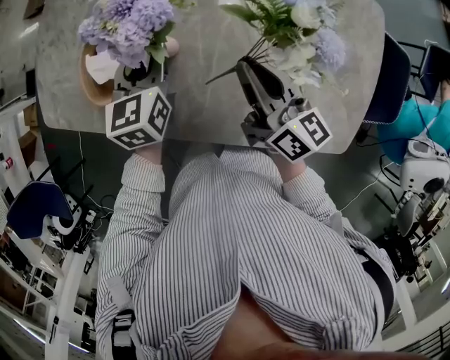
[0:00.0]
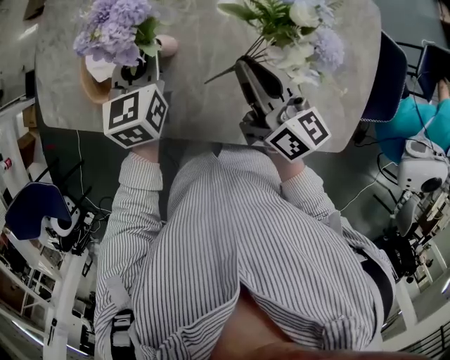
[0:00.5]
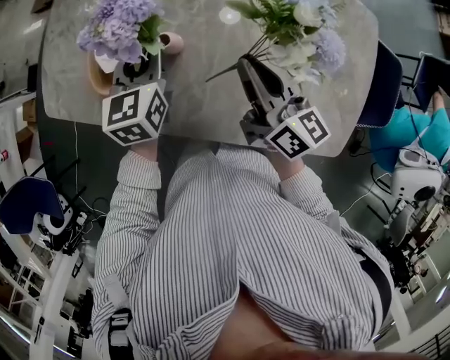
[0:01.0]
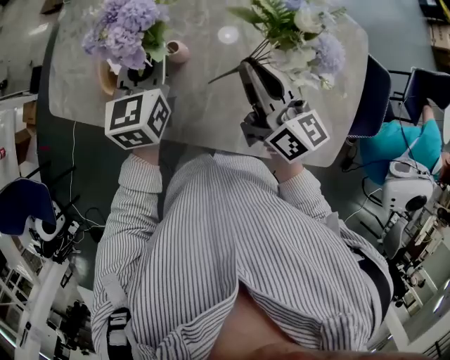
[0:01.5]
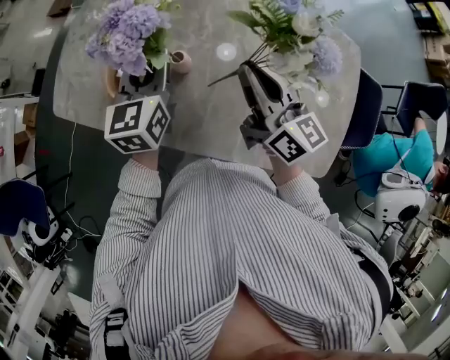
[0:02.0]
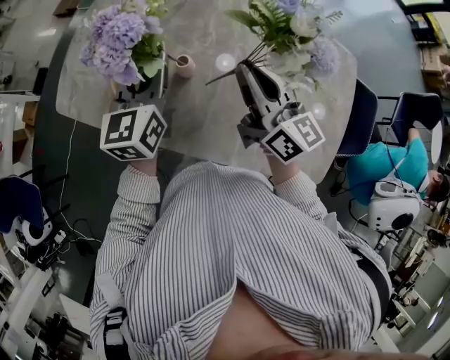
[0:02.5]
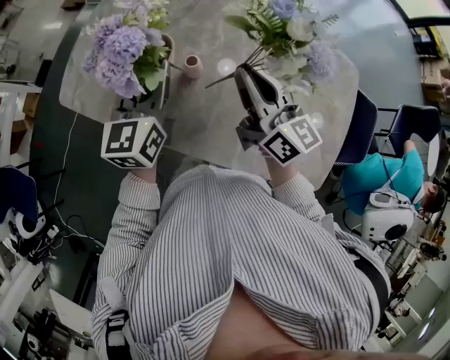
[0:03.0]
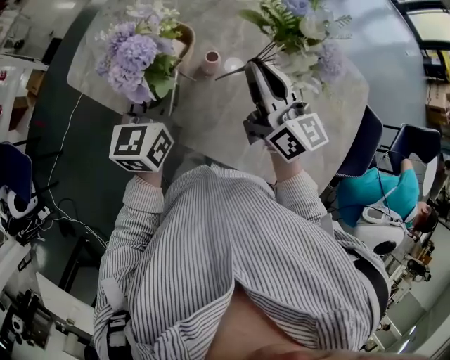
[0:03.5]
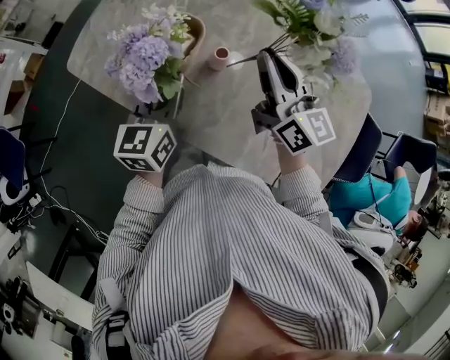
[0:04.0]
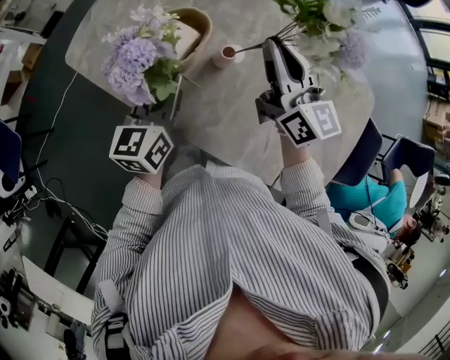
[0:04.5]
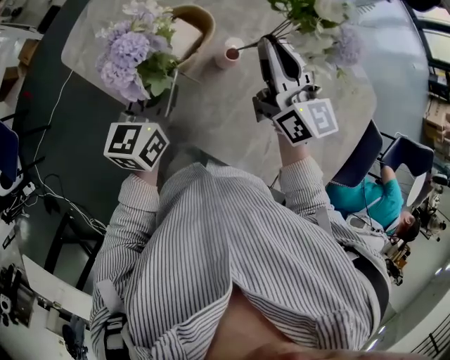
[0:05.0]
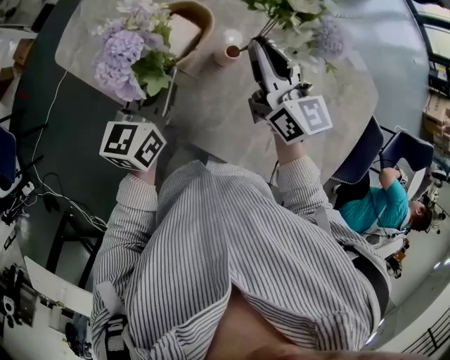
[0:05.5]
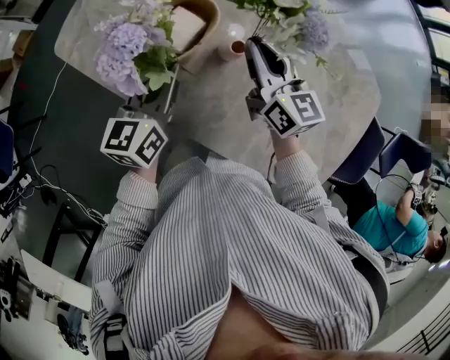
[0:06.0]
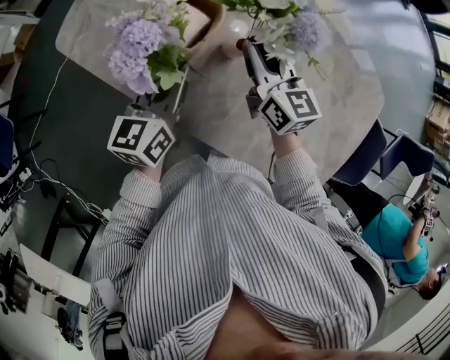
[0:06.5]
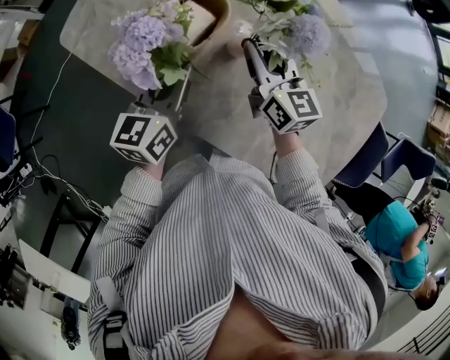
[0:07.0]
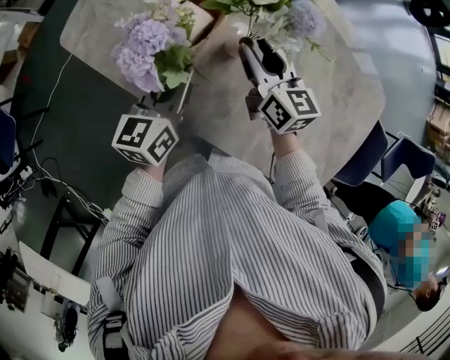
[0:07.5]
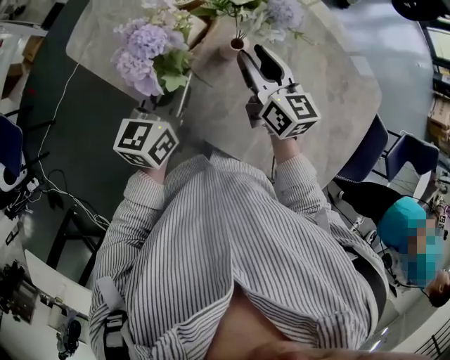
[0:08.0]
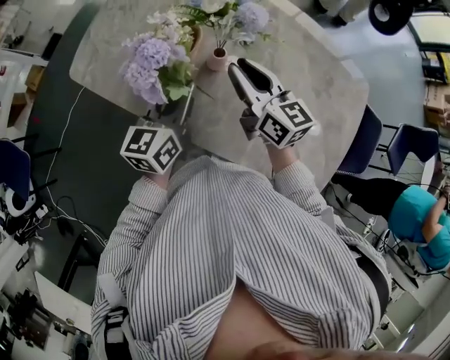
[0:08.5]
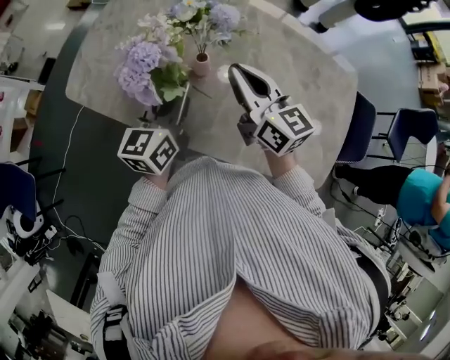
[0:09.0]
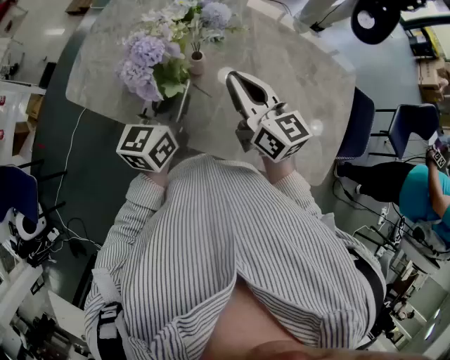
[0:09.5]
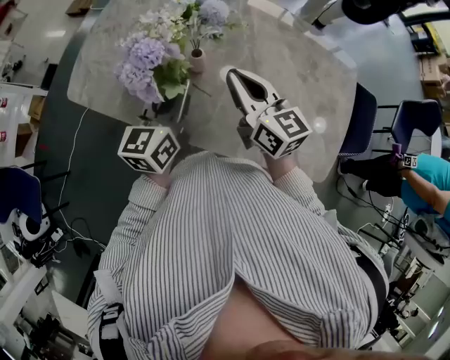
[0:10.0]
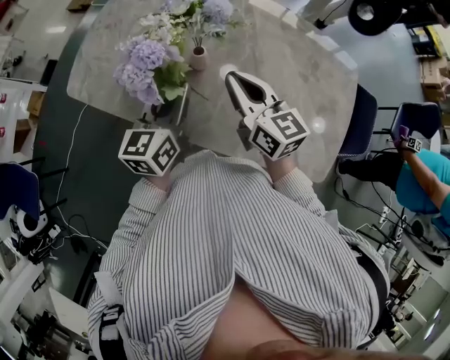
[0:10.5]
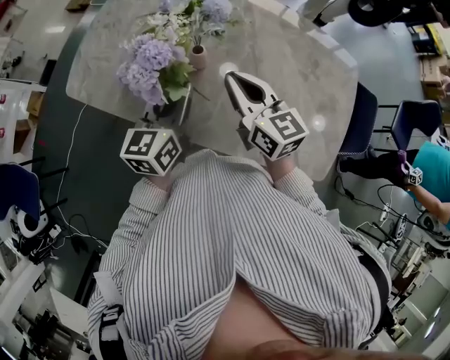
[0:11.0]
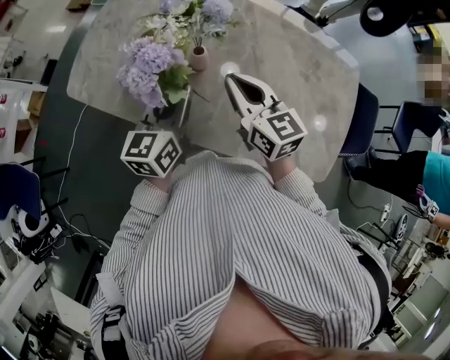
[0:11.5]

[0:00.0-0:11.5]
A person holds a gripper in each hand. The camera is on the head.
0:00.0 to 0:02.0: The grippers both shift upward by about 10 cm.
0:02.0 to 0:04.0: The right gripper goes approximately 5 cm forward. The left gripper moves to the left and backward, roughly 10 cm.
0:04.0 to 0:06.0: The left gripper goes some 5 cm downward. The right gripper heads downward, covering about 10 cm.
0:06.0 to 0:07.5: The right gripper opens.
0:07.5 to 0:09.5: The right gripper heads upward and backward, covering about 20 cm, and closes. The left gripper travels upward and to the right by roughly 15 cm.
0:09.5 to 0:11.5: The grippers move only a little.

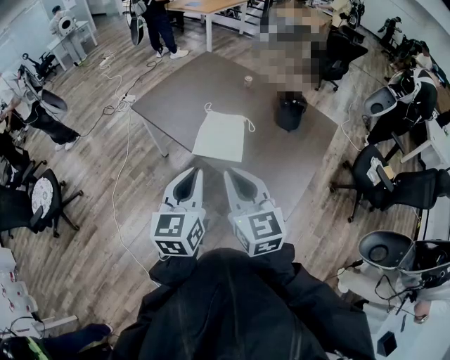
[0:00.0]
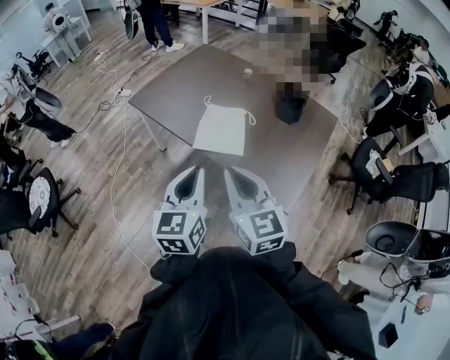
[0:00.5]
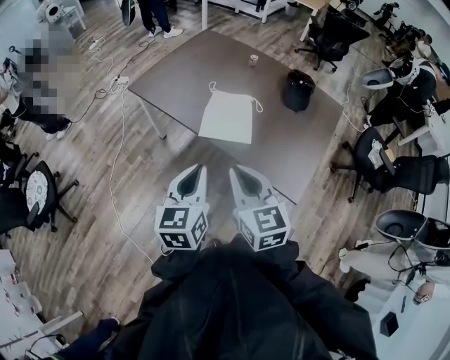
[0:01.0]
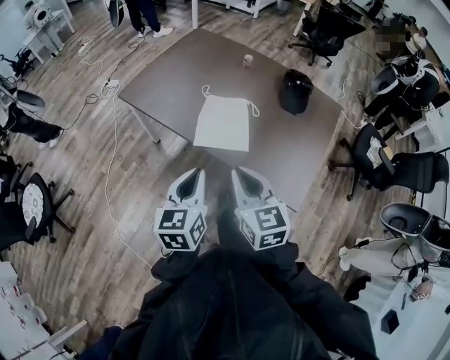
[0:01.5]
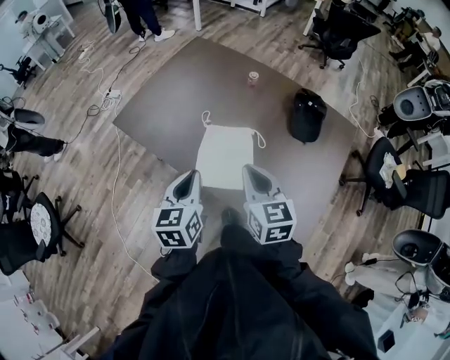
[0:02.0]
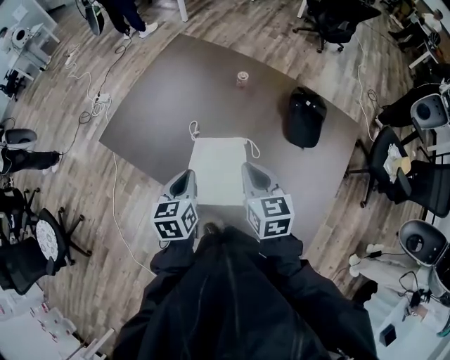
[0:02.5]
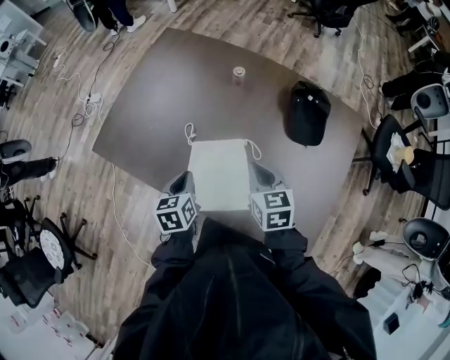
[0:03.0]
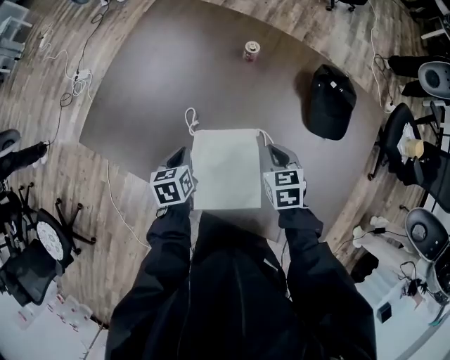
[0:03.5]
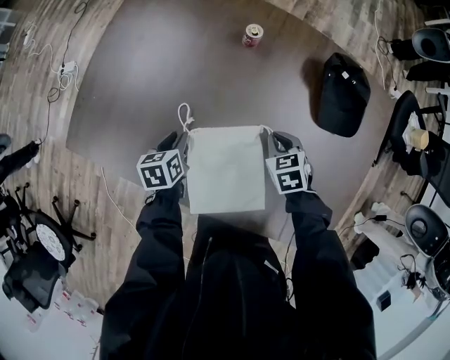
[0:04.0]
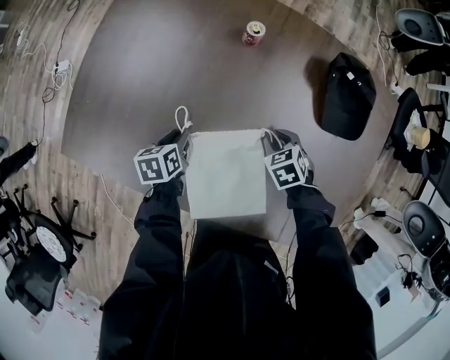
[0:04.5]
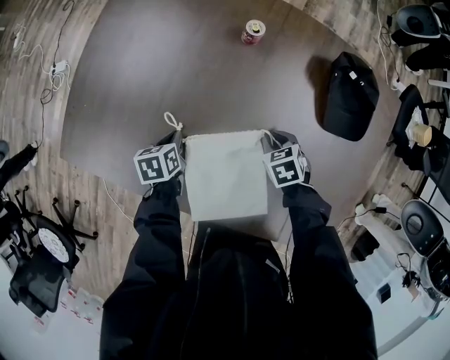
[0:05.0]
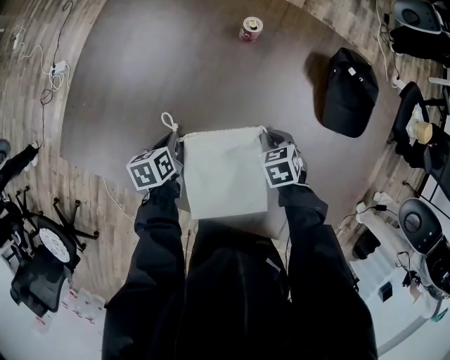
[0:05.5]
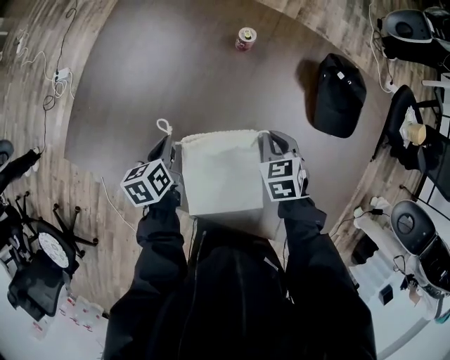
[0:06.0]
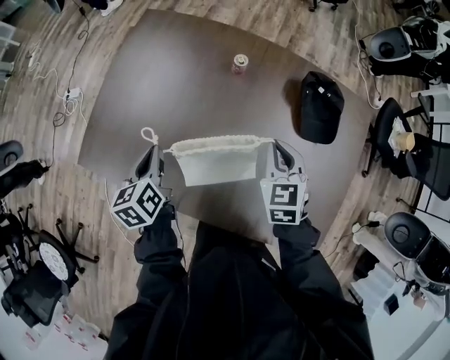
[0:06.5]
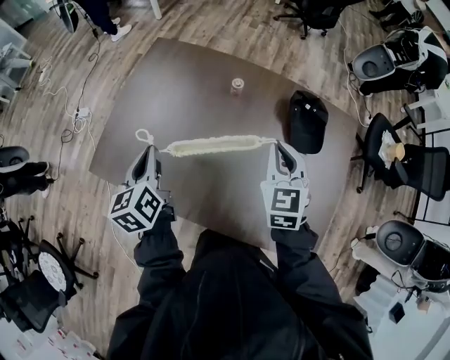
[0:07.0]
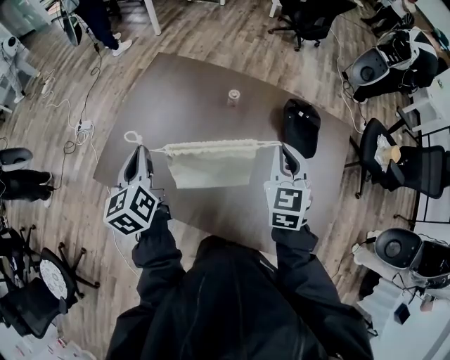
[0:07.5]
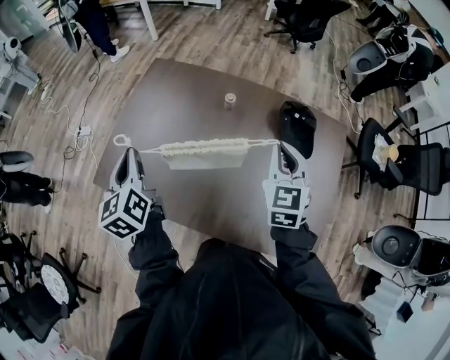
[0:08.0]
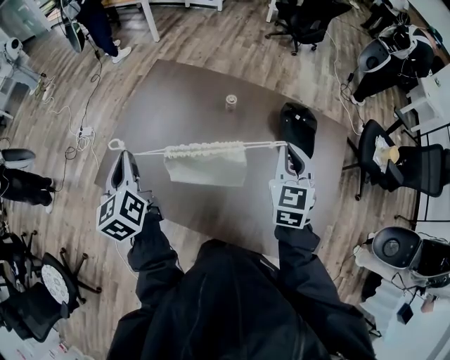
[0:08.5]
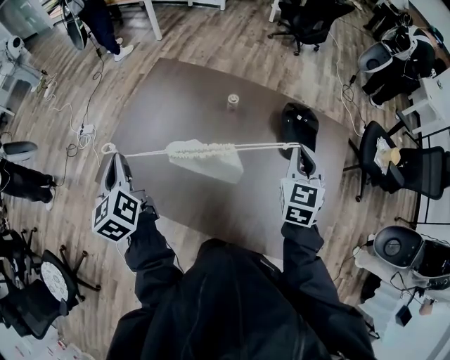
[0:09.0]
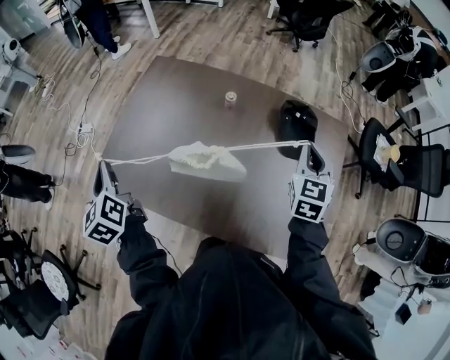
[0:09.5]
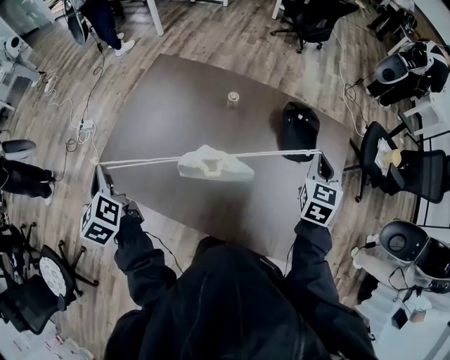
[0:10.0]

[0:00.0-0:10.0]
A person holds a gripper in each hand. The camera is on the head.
0:00.0 to 0:02.0: Both grippers move forward and downward, some 30 cm.
0:02.0 to 0:04.0: The grippers both shift downward and forward by roughly 40 cm. The right gripper tilts its fingers some 40 degrees downward. The left gripper changes its angle by about 30 degrees, and opens up.
0:04.0 to 0:06.0: The left gripper shifts by about 5 cm, and closes up; the right gripper opens, then closes once more.
0:06.0 to 0:08.0: Both grippers travel together upward, about 35 cm. The left gripper angles its fingers upward, by about 30 degrees. Meanwhile the right gripper points its fingers about 40 degrees further upward.
0:08.0 to 0:10.0: The left gripper is displaced to the left by about 10 cm. The right gripper moves to the right, some 15 cm.

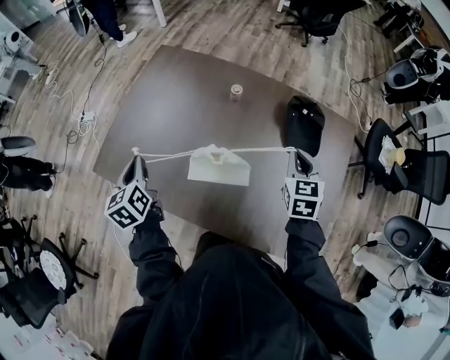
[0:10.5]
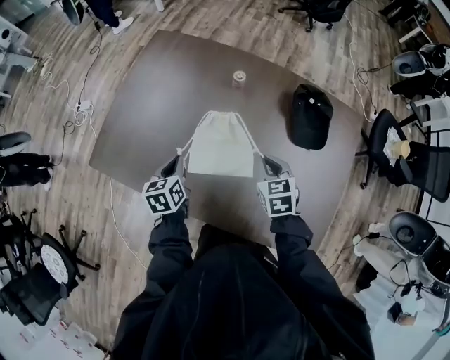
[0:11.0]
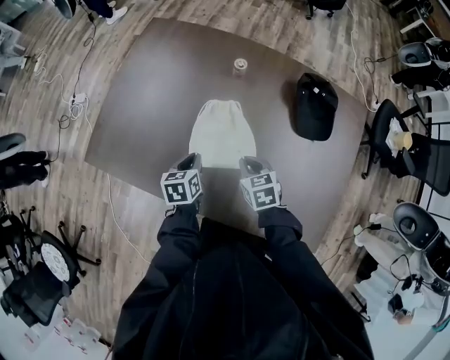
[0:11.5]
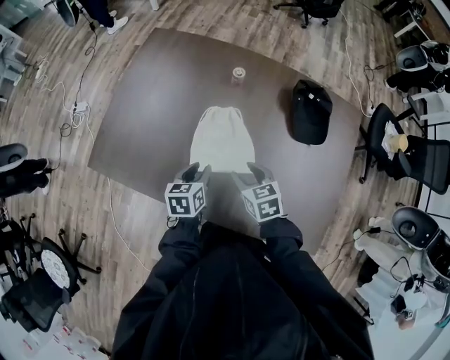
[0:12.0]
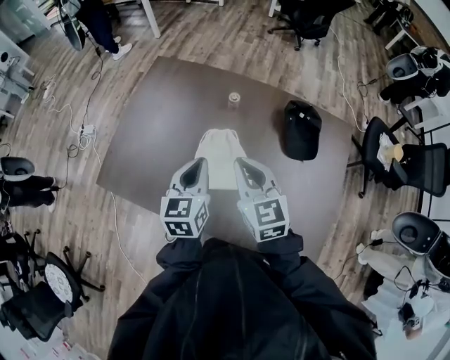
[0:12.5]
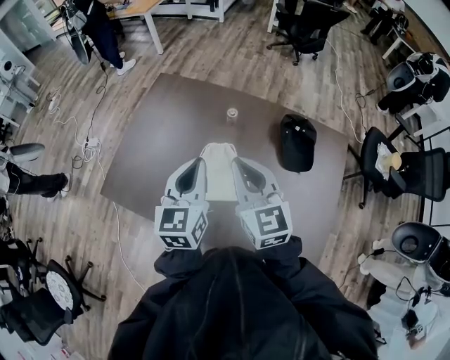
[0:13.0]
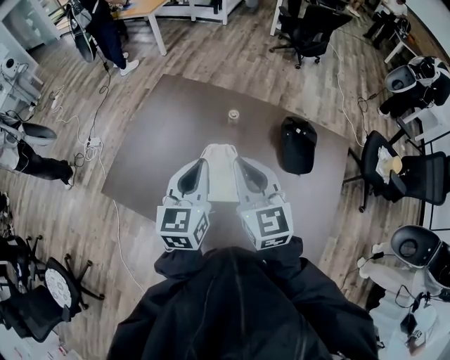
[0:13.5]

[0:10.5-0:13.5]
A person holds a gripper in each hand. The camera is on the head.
0:10.5 to 0:12.0: The left gripper heads downward and to the right, covering about 25 cm, turns by approximately 30 degrees, and opens up. The right gripper travels to the left and downward by some 20 cm, turns by some 30 degrees, and opens its fingers.
0:12.0 to 0:13.5: Both grippers travel together upward, about 30 cm. The right gripper points its fingers some 40 degrees further upward, and closes, while the left gripper turns by roughly 40 degrees, and closes its fingers.

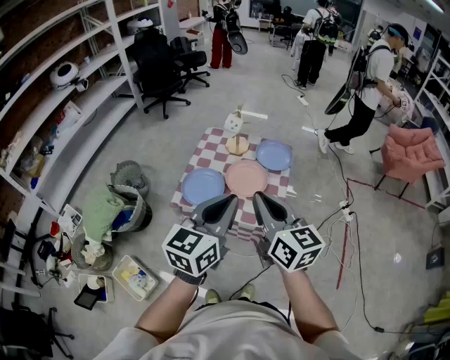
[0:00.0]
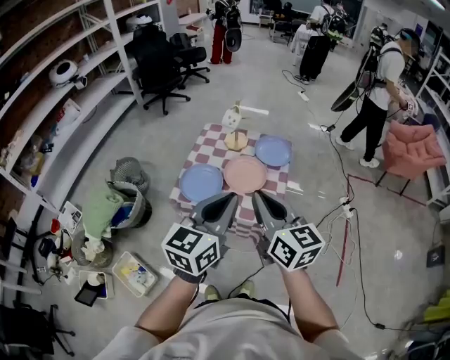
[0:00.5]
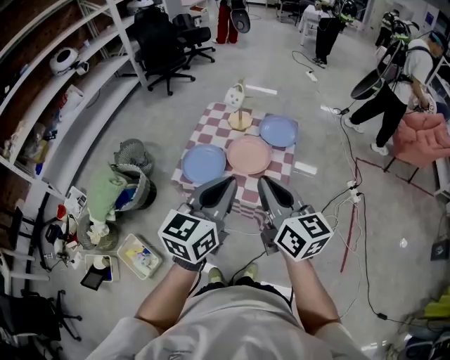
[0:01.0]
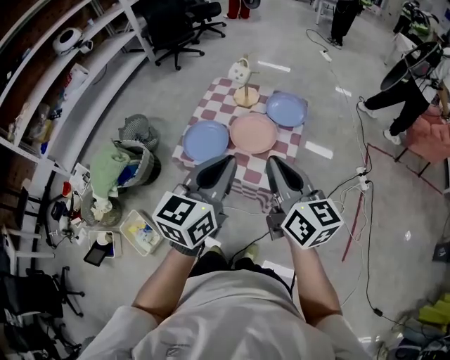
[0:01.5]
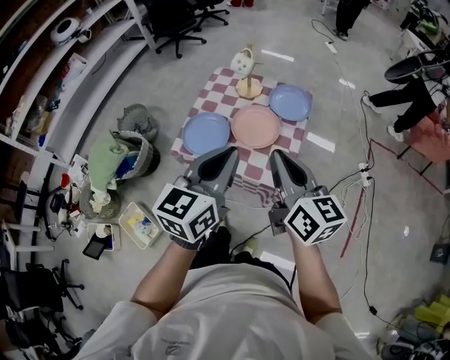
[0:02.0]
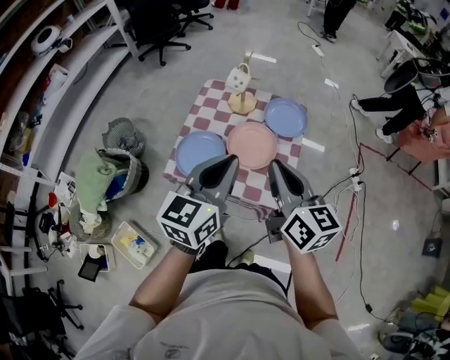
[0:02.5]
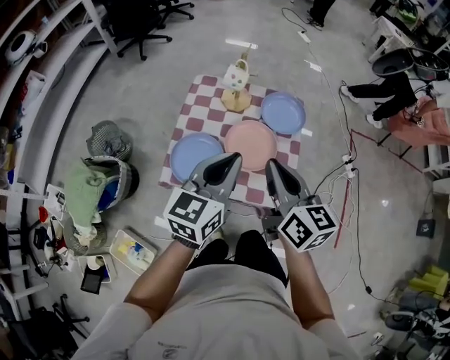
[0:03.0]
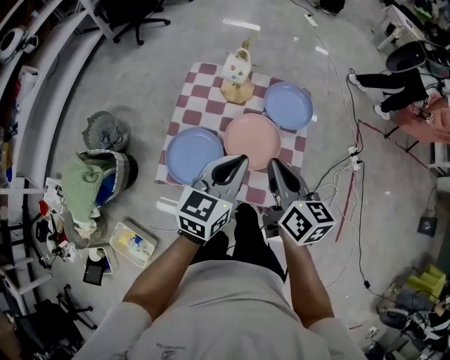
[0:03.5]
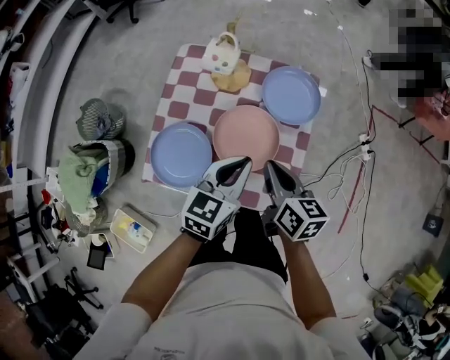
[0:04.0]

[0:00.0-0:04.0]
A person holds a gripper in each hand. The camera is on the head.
0:00.0 to 0:02.0: The left gripper travels forward by approximately 5 cm; the right gripper travels to the right, forward and downward by approximately 10 cm.
0:02.0 to 0:04.0: The left gripper shifts roughly 35 cm forward and downward, and rotates approximately 20 degrees; the right gripper heads downward and forward, covering roughly 35 cm, and changes its angle by some 30 degrees.
